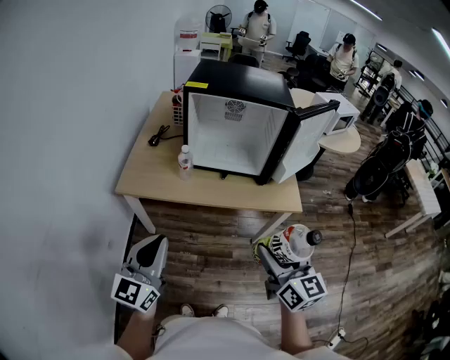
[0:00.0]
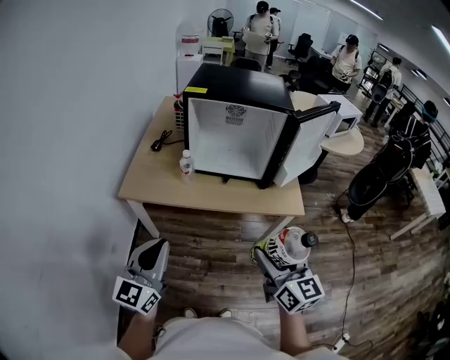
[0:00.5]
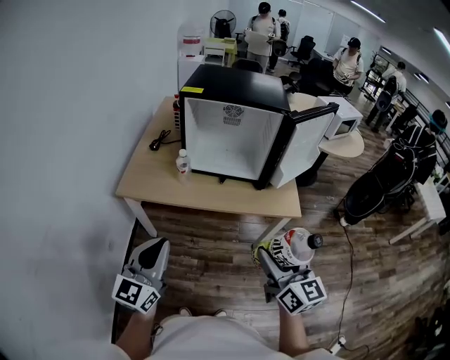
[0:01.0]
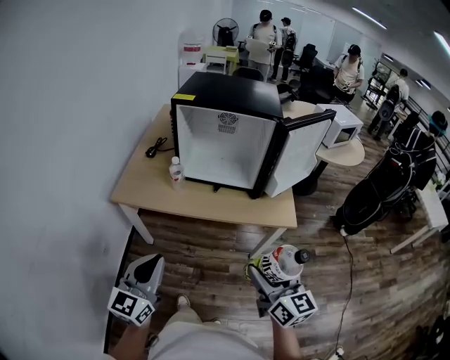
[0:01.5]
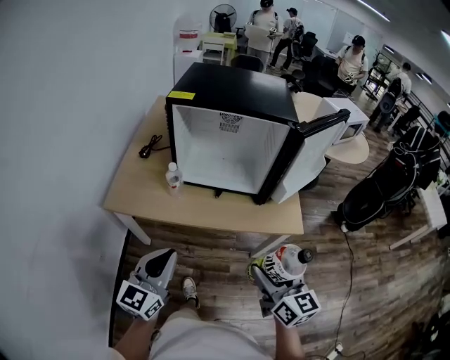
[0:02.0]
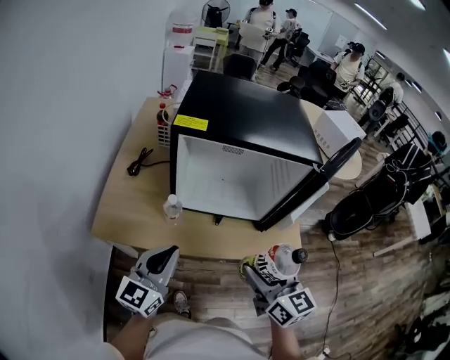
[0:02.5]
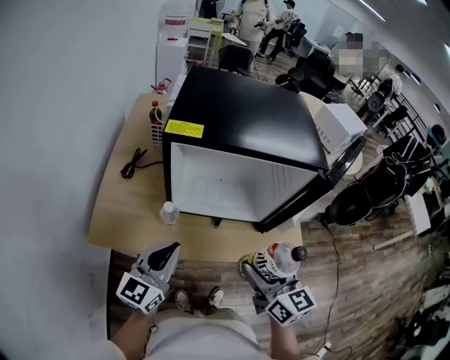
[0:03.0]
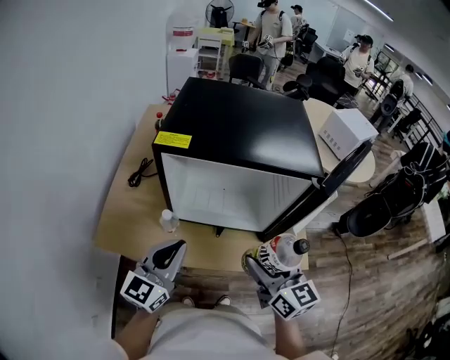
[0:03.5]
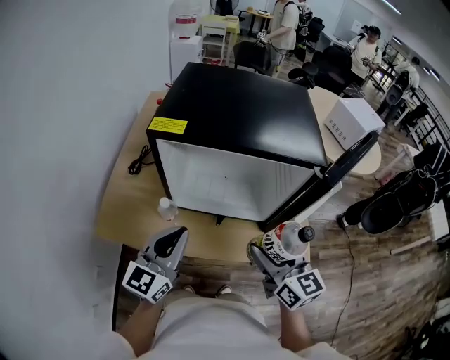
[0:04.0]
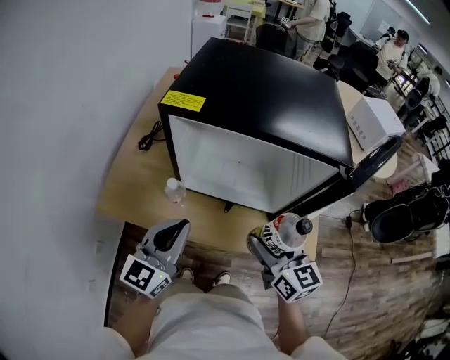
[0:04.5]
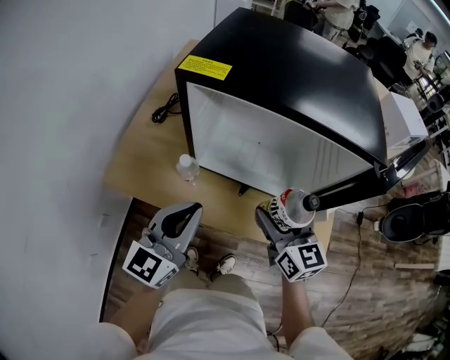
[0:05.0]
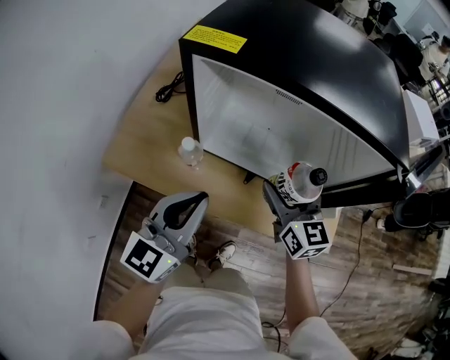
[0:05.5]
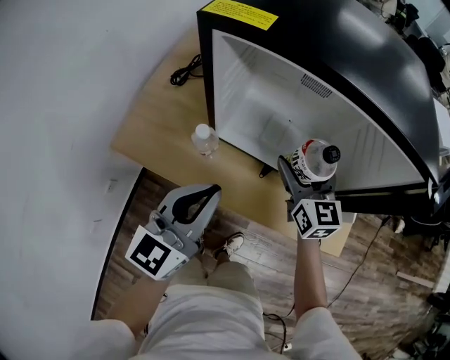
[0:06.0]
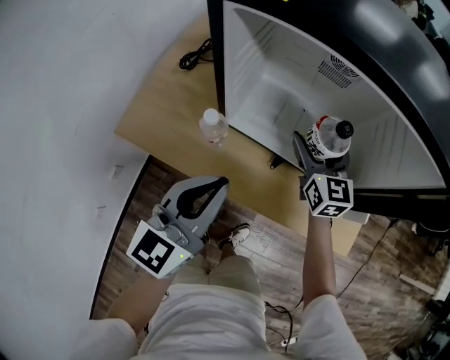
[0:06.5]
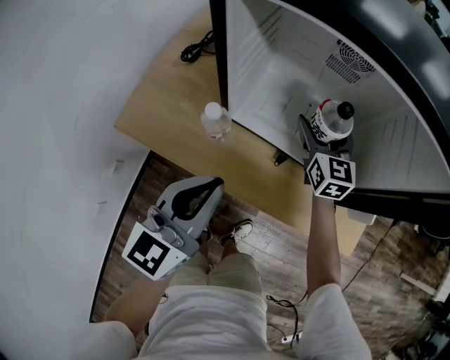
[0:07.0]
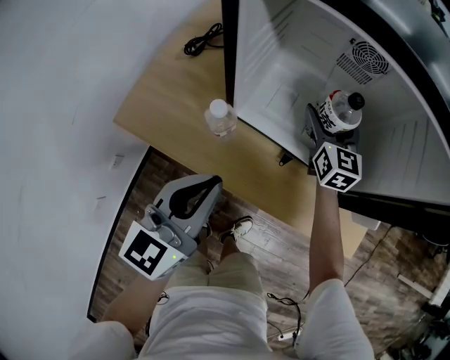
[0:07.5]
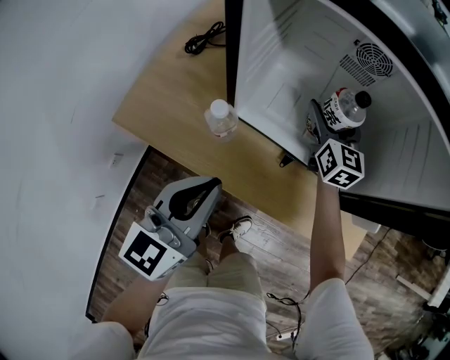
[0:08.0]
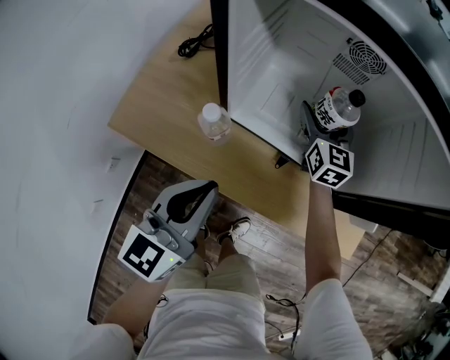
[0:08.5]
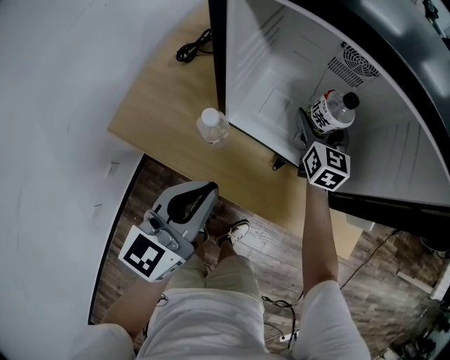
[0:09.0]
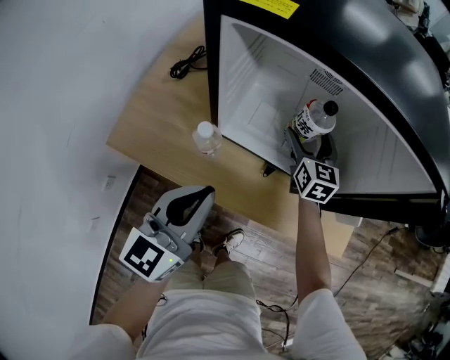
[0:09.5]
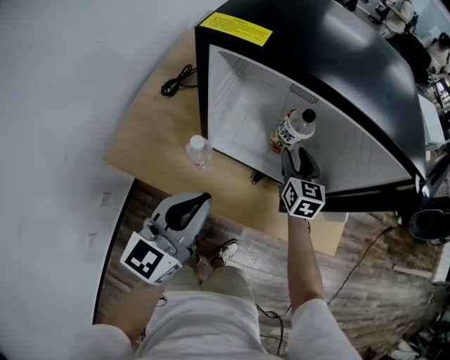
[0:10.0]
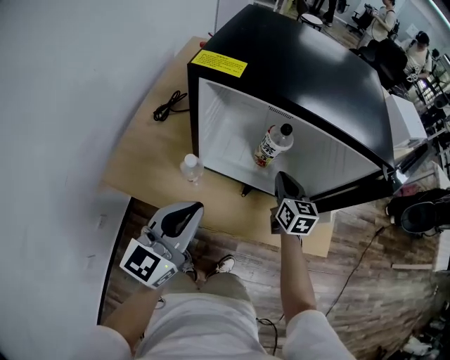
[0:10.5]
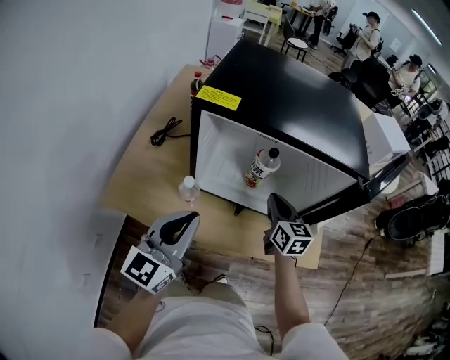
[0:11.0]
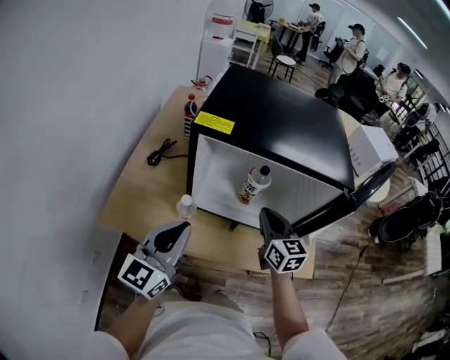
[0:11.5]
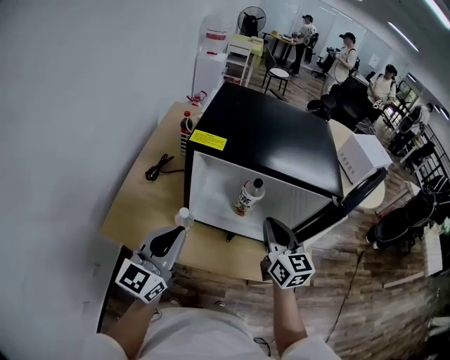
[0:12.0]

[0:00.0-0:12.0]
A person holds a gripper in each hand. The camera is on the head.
0:00.0 to 0:02.0: The left gripper moves forward, to the right and downward, approximately 15 cm, while the right gripper shifts about 10 cm forward and downward.
0:02.0 to 0:04.0: The grippers both shift forward by roughly 25 cm.
0:04.0 to 0:06.0: The left gripper is displaced downward by some 5 cm. Meanwhile the right gripper moves forward and downward, about 20 cm.
0:06.0 to 0:08.0: The right gripper travels forward and downward by roughly 15 cm. Meanwhile the left gripper moves downward, some 5 cm.
0:08.0 to 0:10.0: The left gripper shifts roughly 5 cm upward. The right gripper moves backward, some 5 cm, and closes its fingers.
0:10.0 to 0:12.0: The right gripper travels upward and backward by some 20 cm, and closes up. Meanwhile the left gripper goes about 10 cm upward.

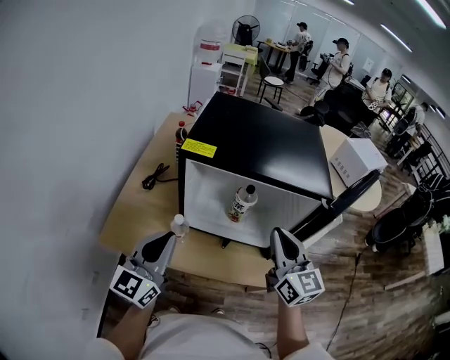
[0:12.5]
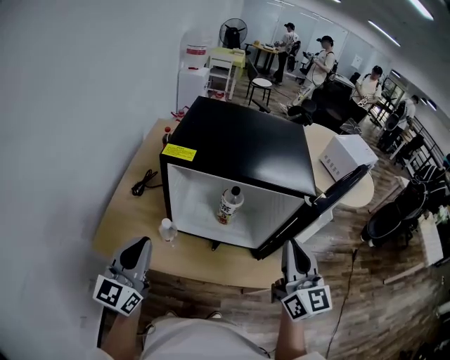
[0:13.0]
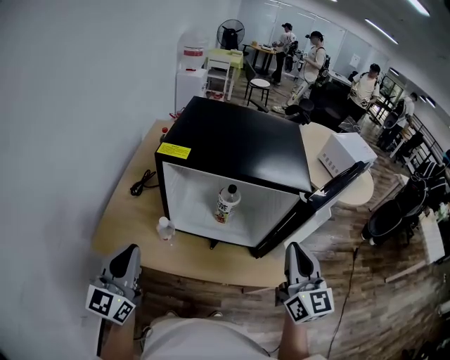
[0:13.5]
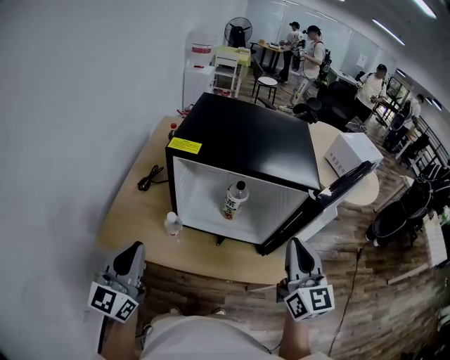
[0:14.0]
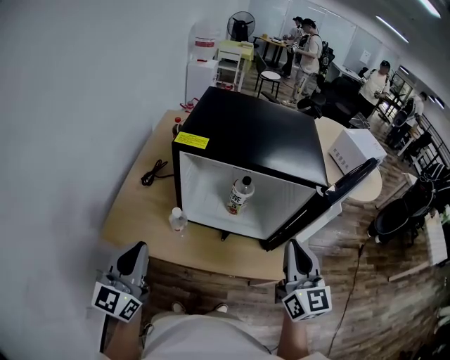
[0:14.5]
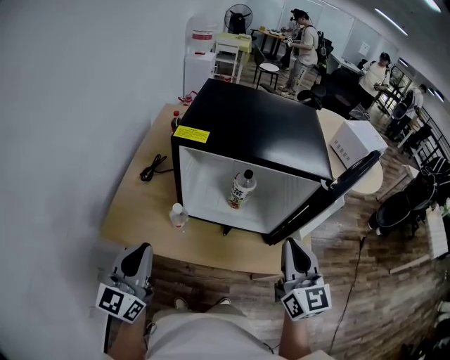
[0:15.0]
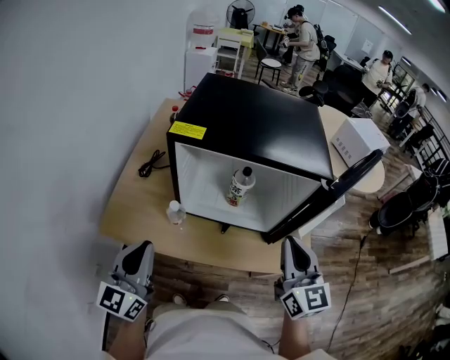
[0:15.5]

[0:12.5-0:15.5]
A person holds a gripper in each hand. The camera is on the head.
0:12.5 to 0:14.0: The left gripper shifts about 5 cm backward, while the right gripper goes some 10 cm to the right and backward.
0:14.0 to 0:15.5: The grippers make only small movements.

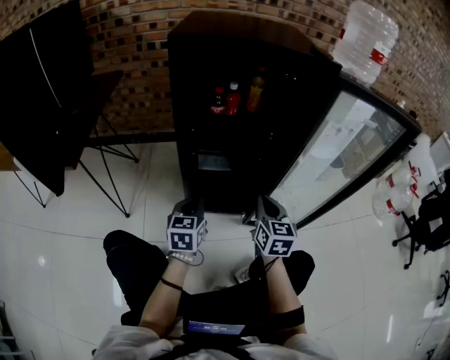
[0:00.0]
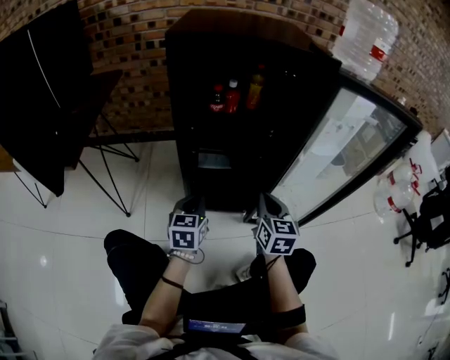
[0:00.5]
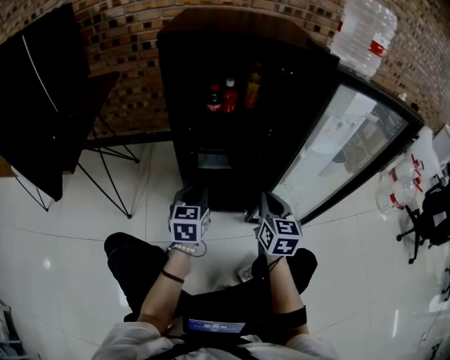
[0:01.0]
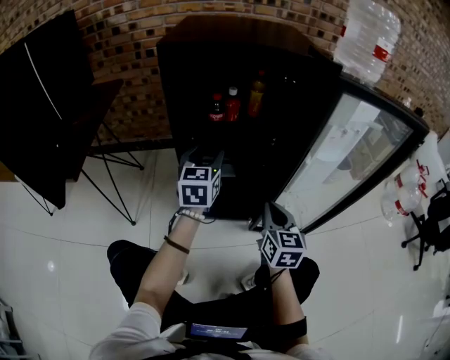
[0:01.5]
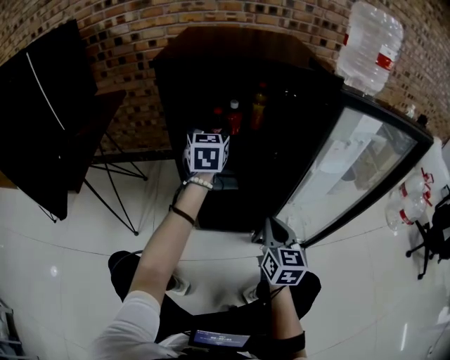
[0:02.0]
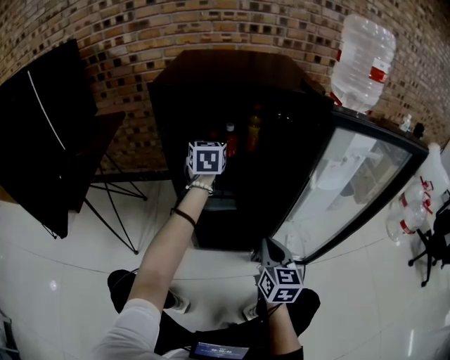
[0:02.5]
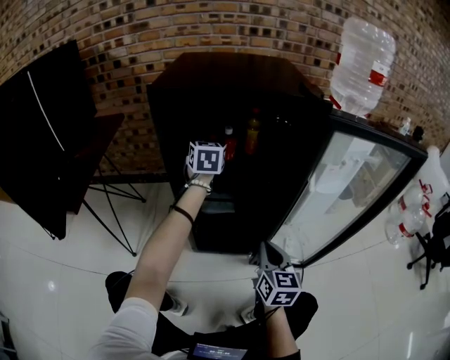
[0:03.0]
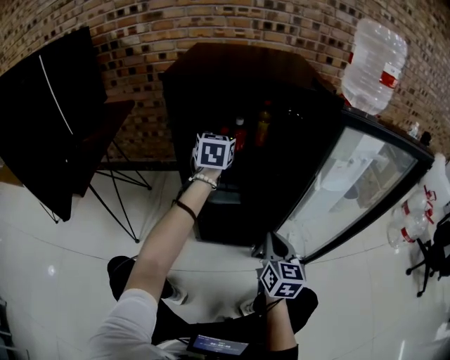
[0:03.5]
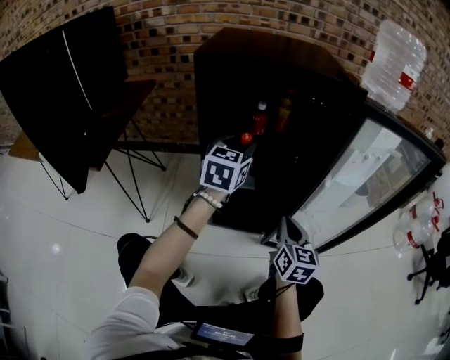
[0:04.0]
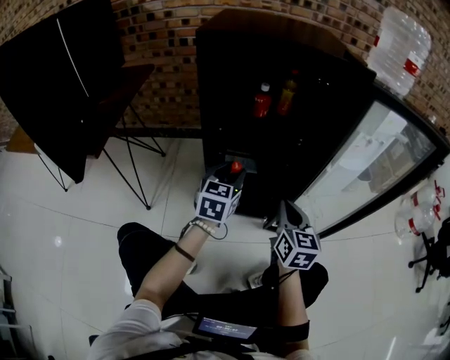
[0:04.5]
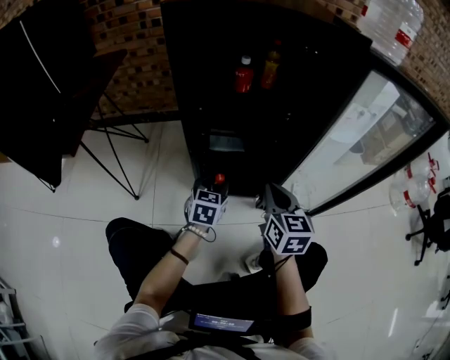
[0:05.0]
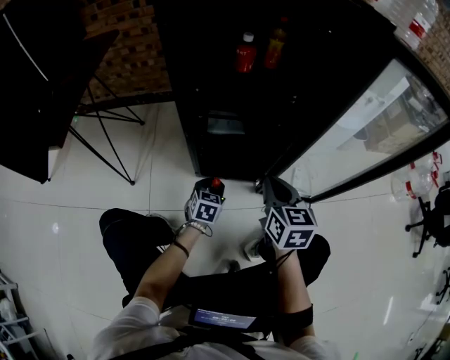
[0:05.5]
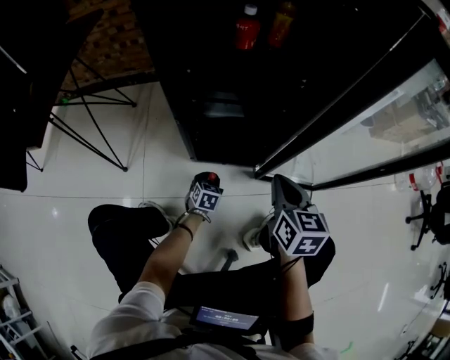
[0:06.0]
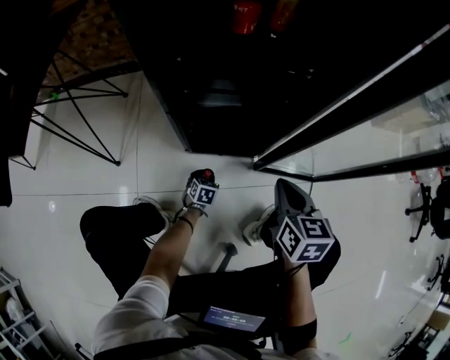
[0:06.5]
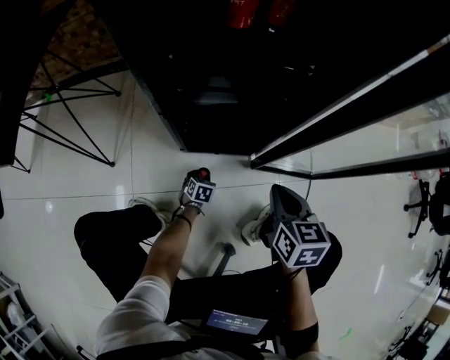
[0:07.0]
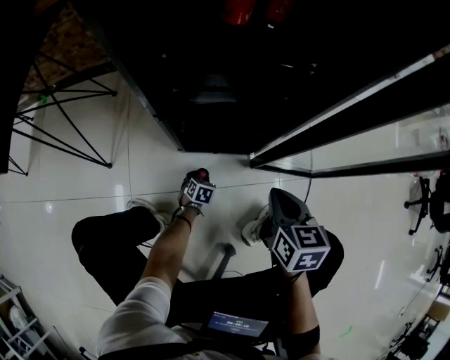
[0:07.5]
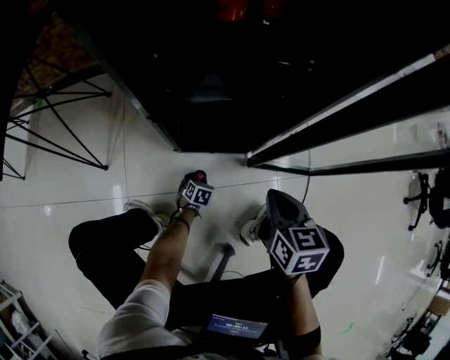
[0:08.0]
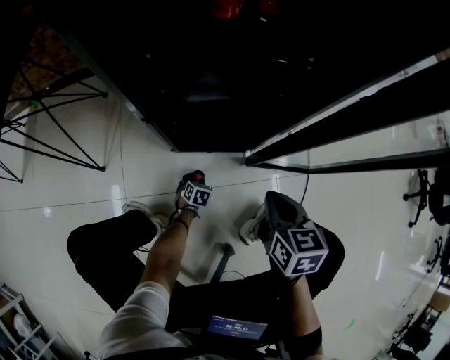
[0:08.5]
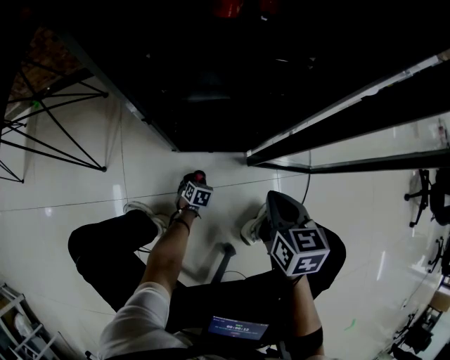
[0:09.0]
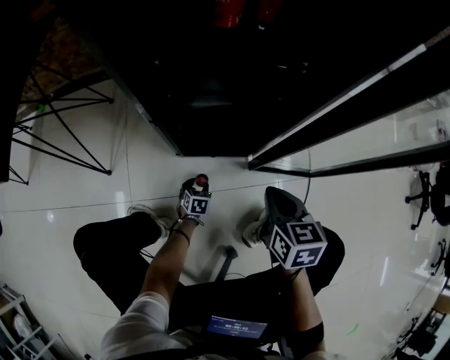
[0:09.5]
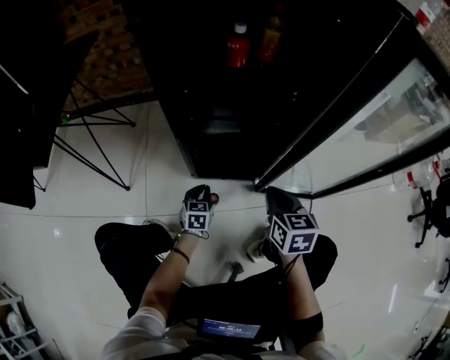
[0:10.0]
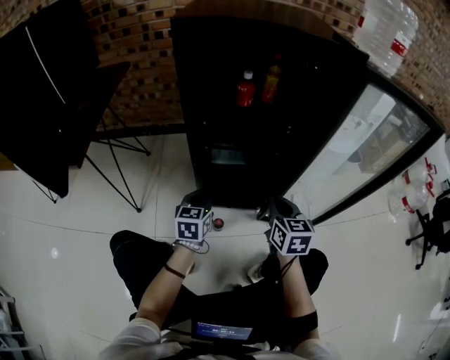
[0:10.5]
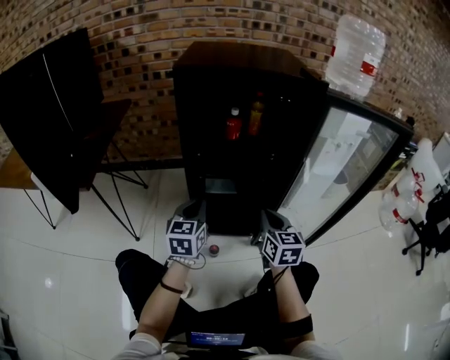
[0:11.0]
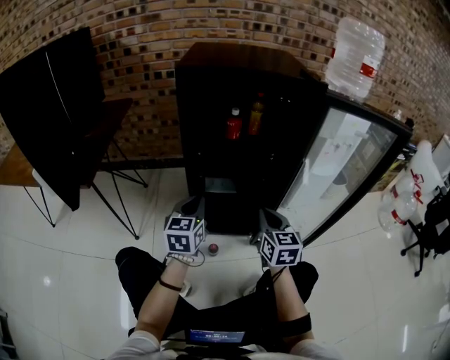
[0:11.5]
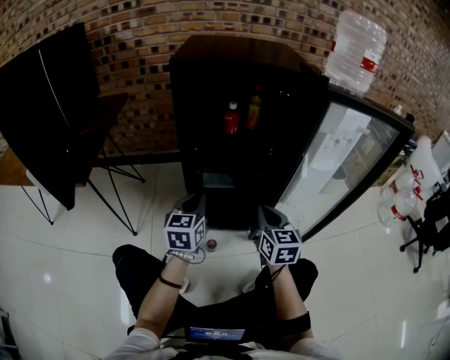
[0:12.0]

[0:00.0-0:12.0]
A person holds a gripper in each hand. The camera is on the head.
0:00.0 to 0:02.0: The left gripper heads forward and upward, covering roughly 30 cm, and opens.
0:02.0 to 0:04.0: The left gripper travels backward by approximately 10 cm, and closes its fingers.
0:04.0 to 0:06.0: The left gripper shifts about 60 cm downward, and angles its fingers downward, by roughly 40 degrees. The right gripper heads downward, covering approximately 10 cm.
0:06.0 to 0:08.0: The right gripper shifts approximately 10 cm downward, while the left gripper goes roughly 15 cm downward.
0:08.0 to 0:10.0: The left gripper is displaced upward by roughly 25 cm, turns by approximately 30 degrees, and closes up. Meanwhile the right gripper changes place by some 5 cm.
0:10.0 to 0:12.0: The right gripper heads upward, covering some 15 cm. Meanwhile the left gripper heads upward, covering some 35 cm, and changes its angle by approximately 20 degrees.
